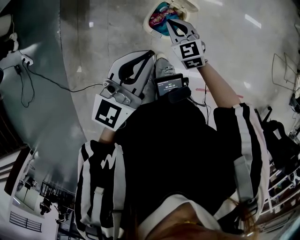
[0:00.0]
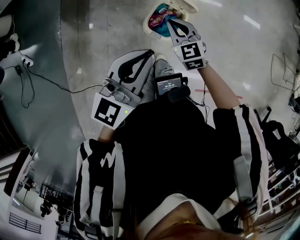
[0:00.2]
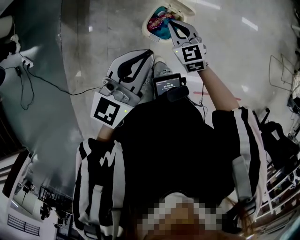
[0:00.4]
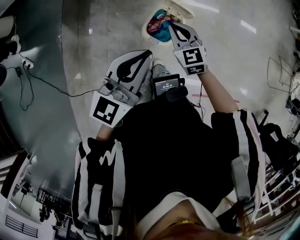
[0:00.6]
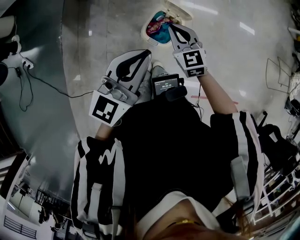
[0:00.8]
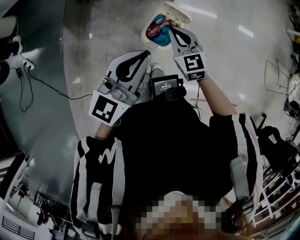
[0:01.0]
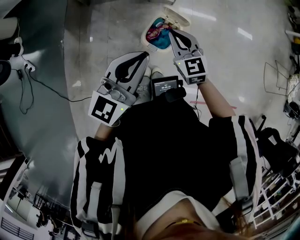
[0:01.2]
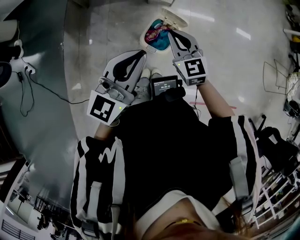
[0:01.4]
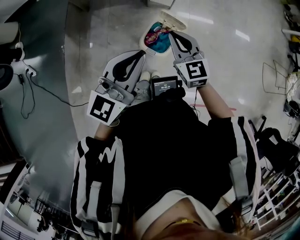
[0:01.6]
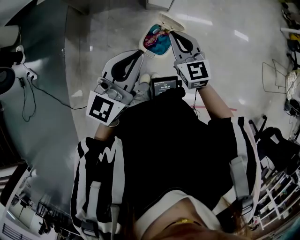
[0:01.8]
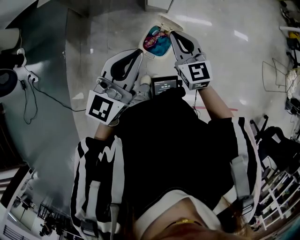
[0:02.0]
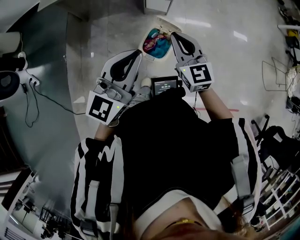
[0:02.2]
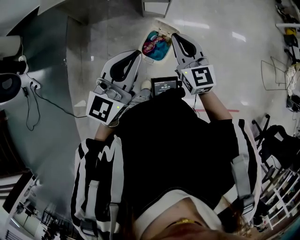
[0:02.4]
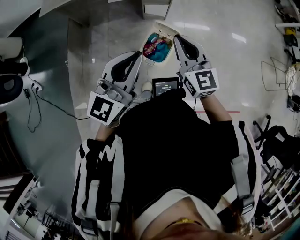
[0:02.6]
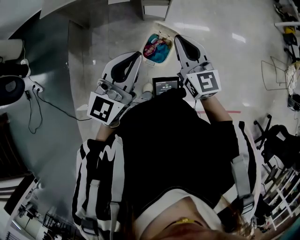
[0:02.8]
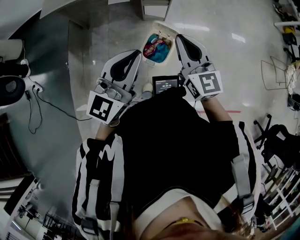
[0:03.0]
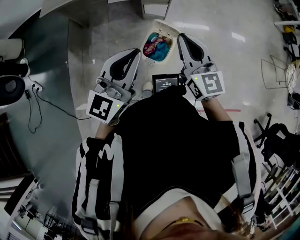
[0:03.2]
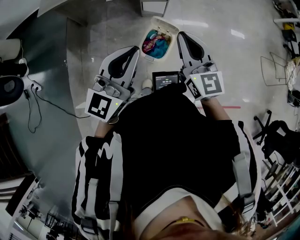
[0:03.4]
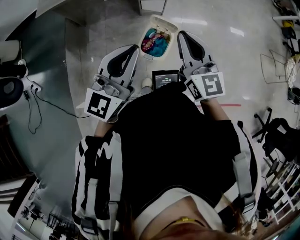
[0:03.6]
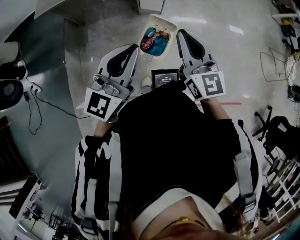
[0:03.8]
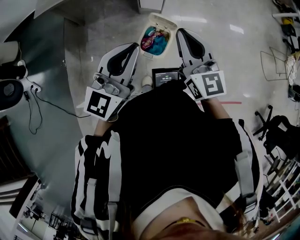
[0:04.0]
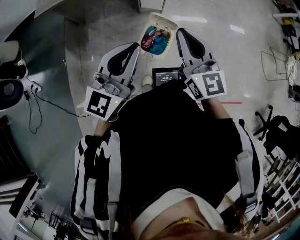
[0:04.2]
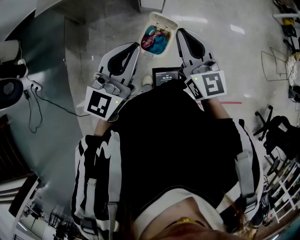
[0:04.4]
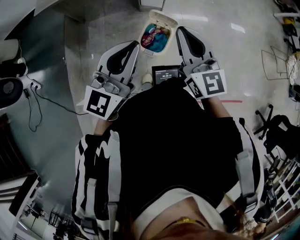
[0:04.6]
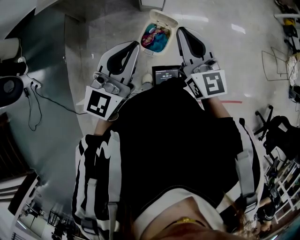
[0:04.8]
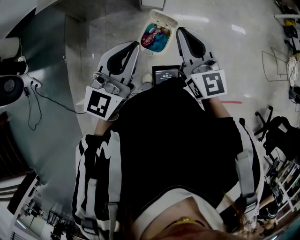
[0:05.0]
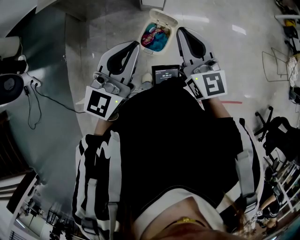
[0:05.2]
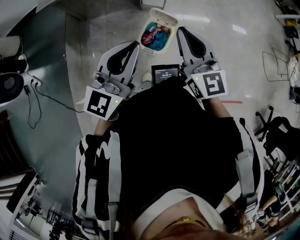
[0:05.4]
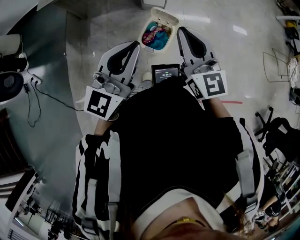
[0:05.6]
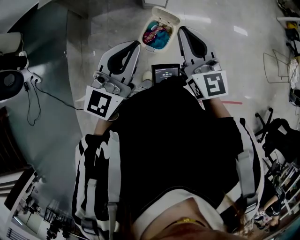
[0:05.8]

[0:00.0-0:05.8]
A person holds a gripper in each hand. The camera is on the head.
0:00.0 to 0:01.4: The right gripper shifts approximately 15 cm upward.
0:01.4 to 0:02.8: The right gripper is displaced upward by about 10 cm.
0:02.8 to 0:04.4: There are only small adjustments of the grippers.
0:04.4 to 0:05.8: The grippers stay close to where they were, moving slightly.

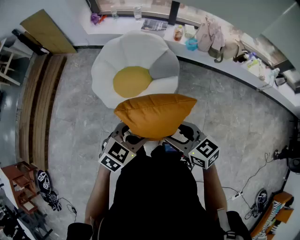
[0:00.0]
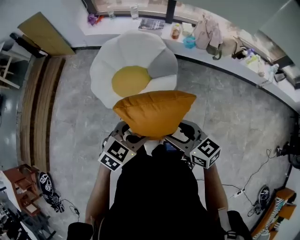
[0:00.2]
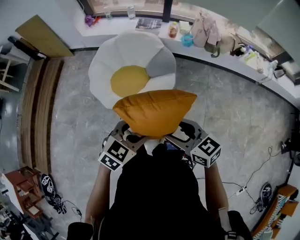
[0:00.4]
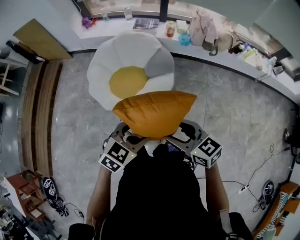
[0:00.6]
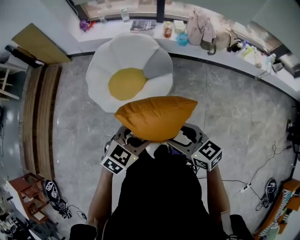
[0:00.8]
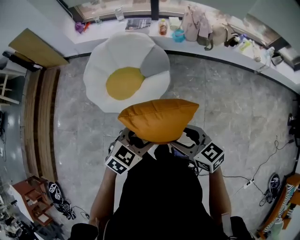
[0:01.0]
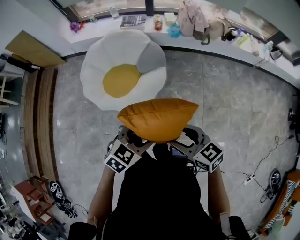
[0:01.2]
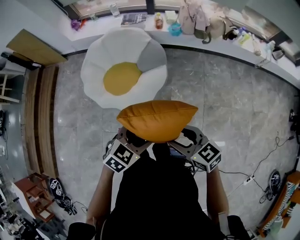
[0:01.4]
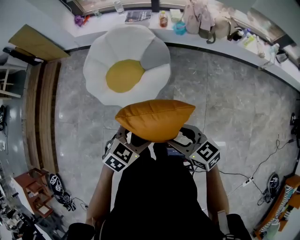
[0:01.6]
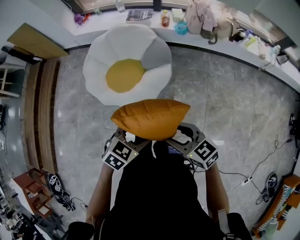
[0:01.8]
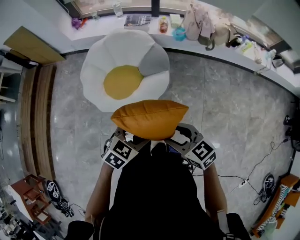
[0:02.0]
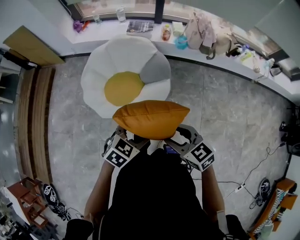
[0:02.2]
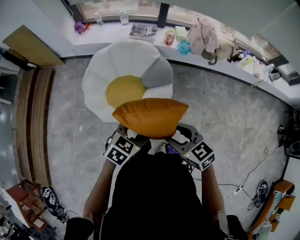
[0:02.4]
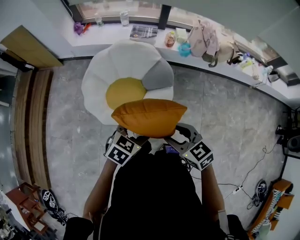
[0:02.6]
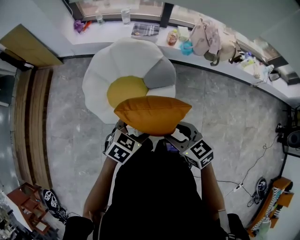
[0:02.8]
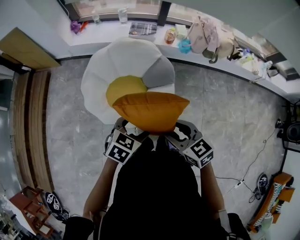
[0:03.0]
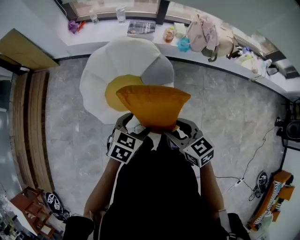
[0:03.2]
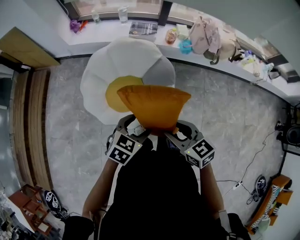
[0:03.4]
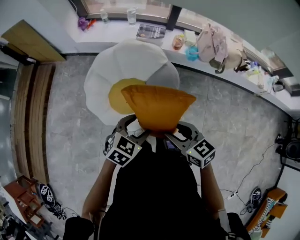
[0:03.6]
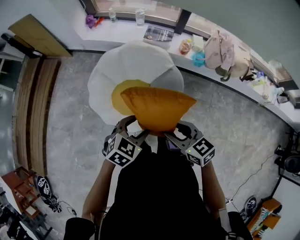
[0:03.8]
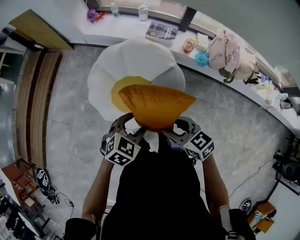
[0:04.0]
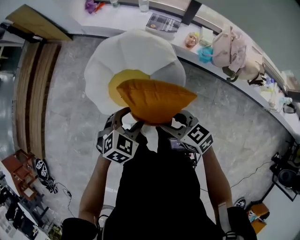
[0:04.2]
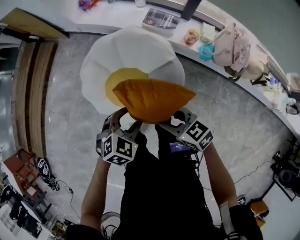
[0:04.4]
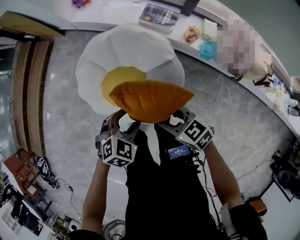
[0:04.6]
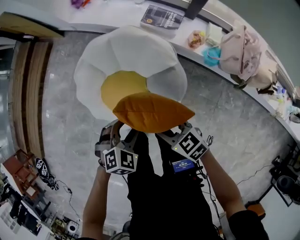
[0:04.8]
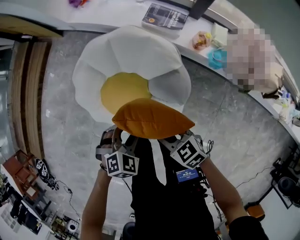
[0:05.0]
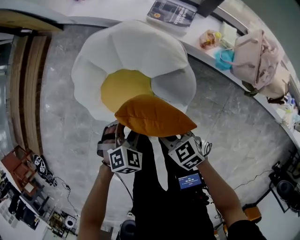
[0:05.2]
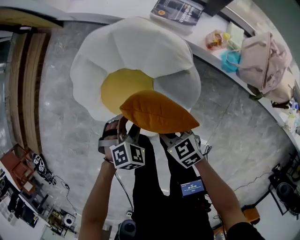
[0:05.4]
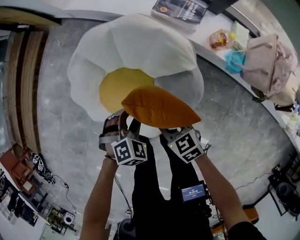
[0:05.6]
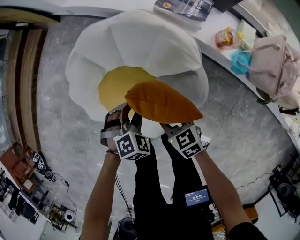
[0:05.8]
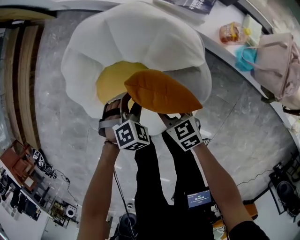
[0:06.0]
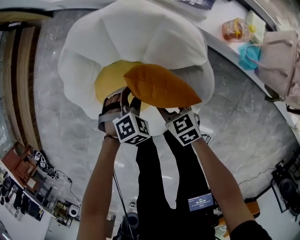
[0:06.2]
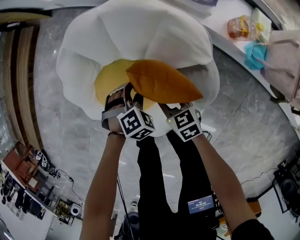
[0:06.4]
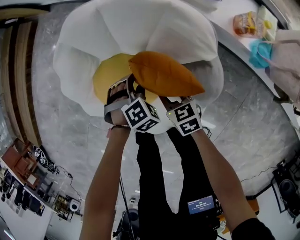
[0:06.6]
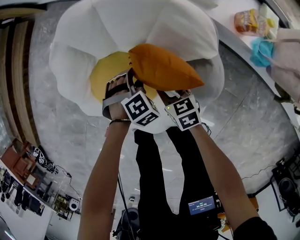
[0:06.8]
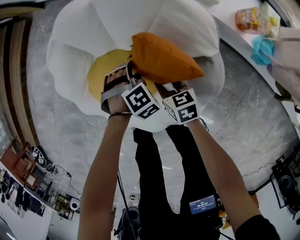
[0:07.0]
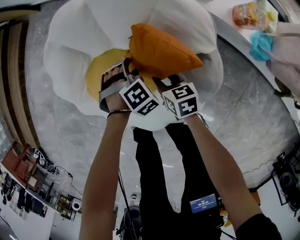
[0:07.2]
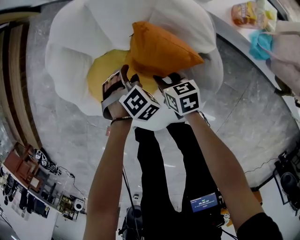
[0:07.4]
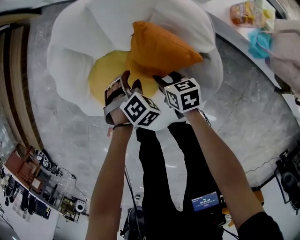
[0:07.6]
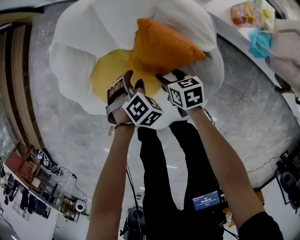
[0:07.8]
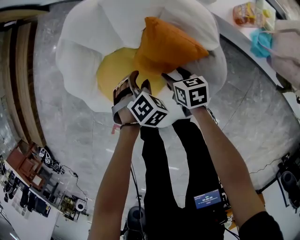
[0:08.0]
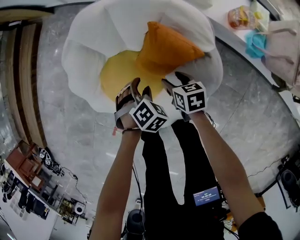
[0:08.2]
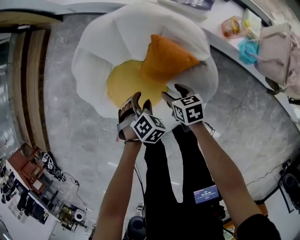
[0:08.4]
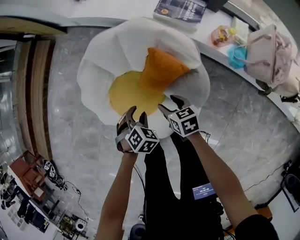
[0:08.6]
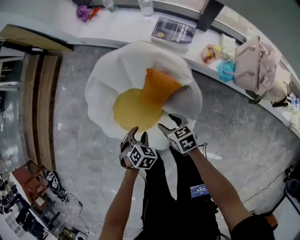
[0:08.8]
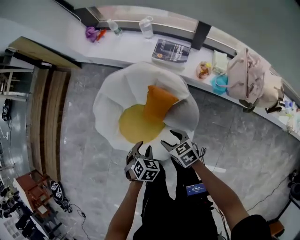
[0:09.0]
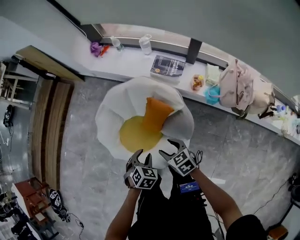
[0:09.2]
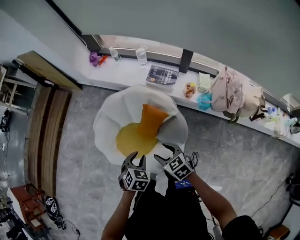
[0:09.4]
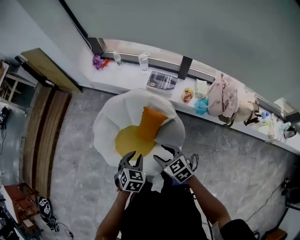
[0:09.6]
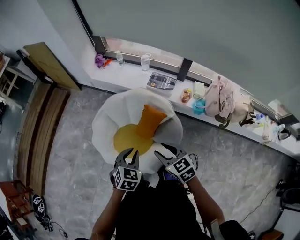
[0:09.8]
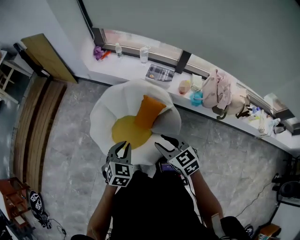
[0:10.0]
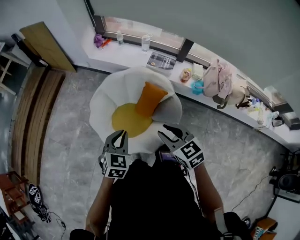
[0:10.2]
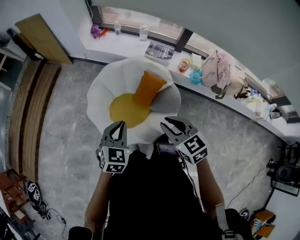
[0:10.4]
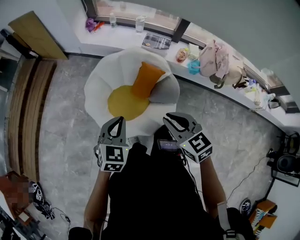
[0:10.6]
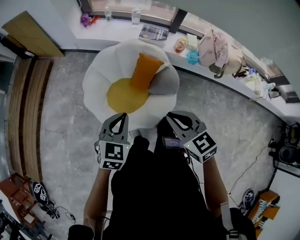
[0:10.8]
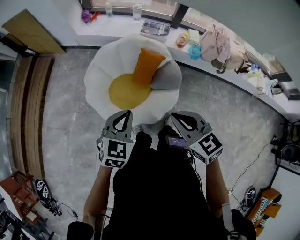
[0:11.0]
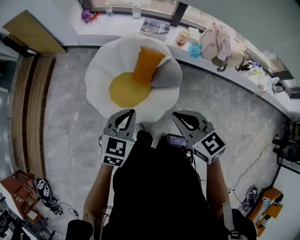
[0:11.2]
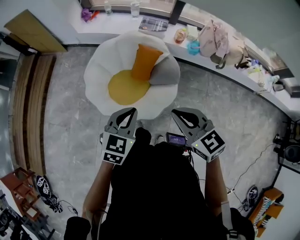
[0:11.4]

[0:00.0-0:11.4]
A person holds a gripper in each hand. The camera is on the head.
0:00.0 to 0:01.4: The two grippers go about 10 cm to the right.
0:01.4 to 0:02.8: Both grippers travel together forward and to the left, approximately 25 cm.
0:02.8 to 0:04.2: The right gripper changes place by about 20 cm, and swivels some 20 degrees. Meanwhile the left gripper shifts by roughly 20 cm.
0:04.2 to 0:05.6: Both grippers move downward and forward, roughly 30 cm. The left gripper turns by approximately 20 degrees.
0:05.6 to 0:07.2: The two grippers go approximately 25 cm downward and forward. The right gripper changes its angle by roughly 20 degrees.
0:07.2 to 0:08.6: The left gripper shifts about 20 cm upward, to the left and backward, and swivels roughly 20 degrees, while the right gripper travels upward by some 20 cm, and opens.
0:08.6 to 0:10.0: The two grippers go about 40 cm upward. The right gripper swivels some 30 degrees, and closes its fingers. Meanwhile the left gripper rotates approximately 30 degrees, and closes its fingers.
0:10.0 to 0:11.4: The left gripper is displaced backward by some 10 cm, and swivels some 20 degrees; the right gripper moves backward and upward, approximately 15 cm, and closes up.

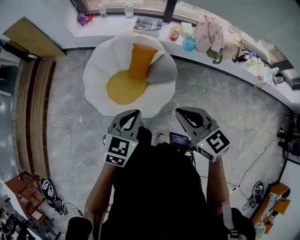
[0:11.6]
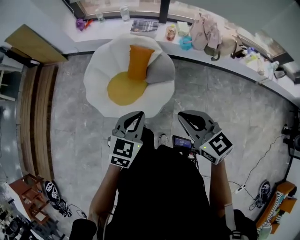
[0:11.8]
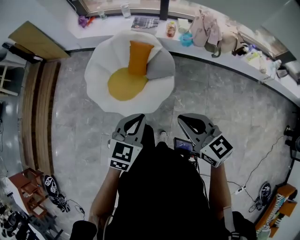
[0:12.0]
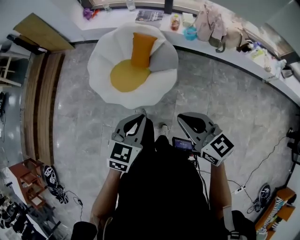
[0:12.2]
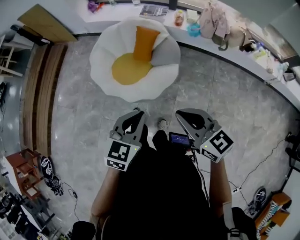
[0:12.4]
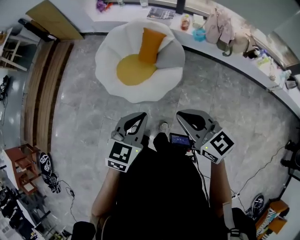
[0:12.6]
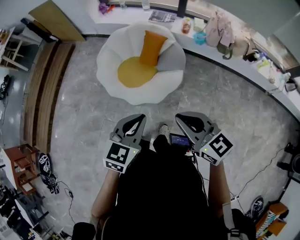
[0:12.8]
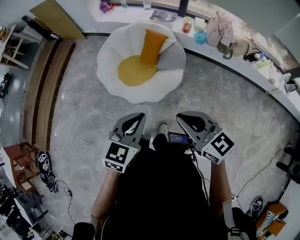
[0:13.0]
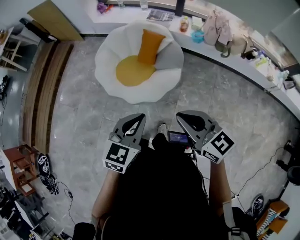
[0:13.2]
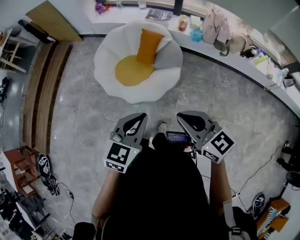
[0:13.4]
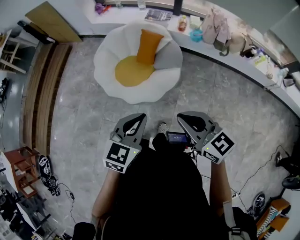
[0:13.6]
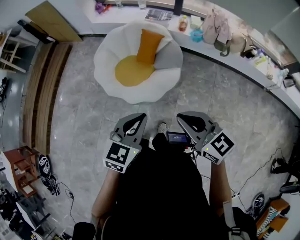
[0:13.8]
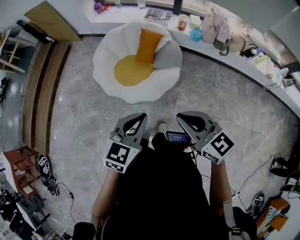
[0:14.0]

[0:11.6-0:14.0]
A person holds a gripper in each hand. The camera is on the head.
0:11.6 to 0:12.8: The grippers both shift backward by roughly 20 cm.
0:12.8 to 0:14.0: There are only small adjustments of the grippers.

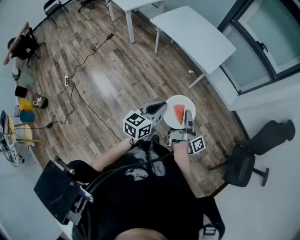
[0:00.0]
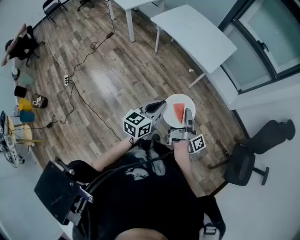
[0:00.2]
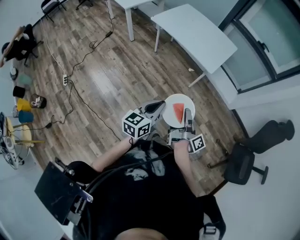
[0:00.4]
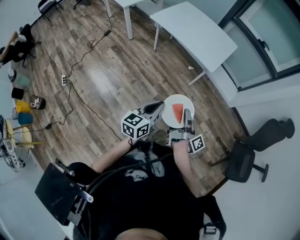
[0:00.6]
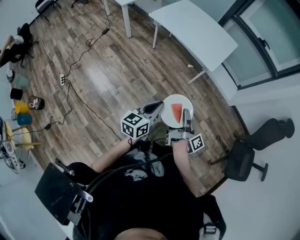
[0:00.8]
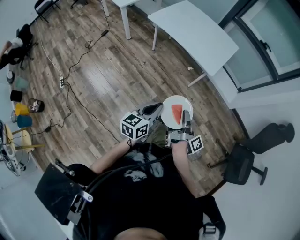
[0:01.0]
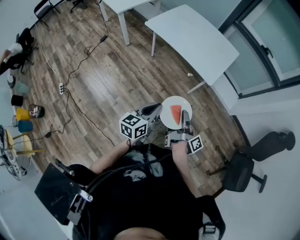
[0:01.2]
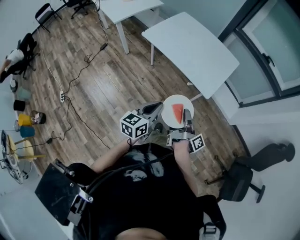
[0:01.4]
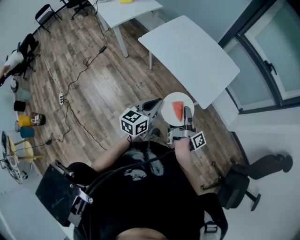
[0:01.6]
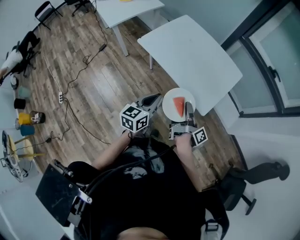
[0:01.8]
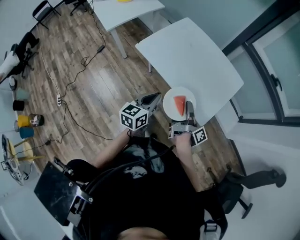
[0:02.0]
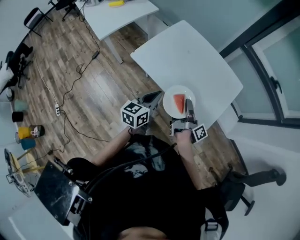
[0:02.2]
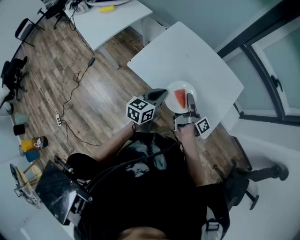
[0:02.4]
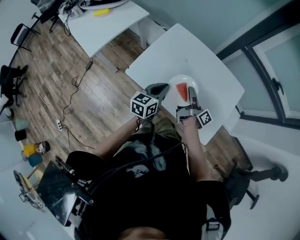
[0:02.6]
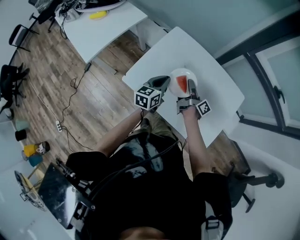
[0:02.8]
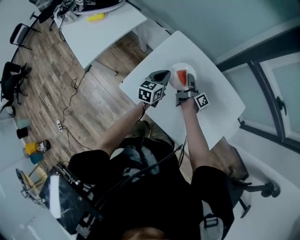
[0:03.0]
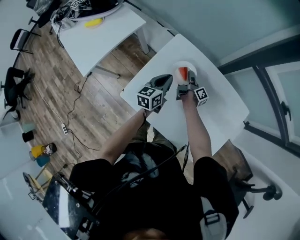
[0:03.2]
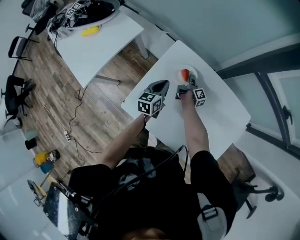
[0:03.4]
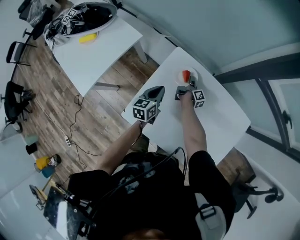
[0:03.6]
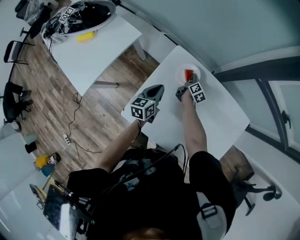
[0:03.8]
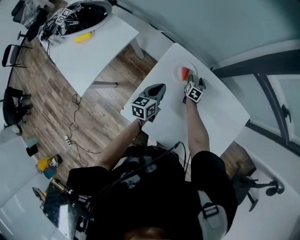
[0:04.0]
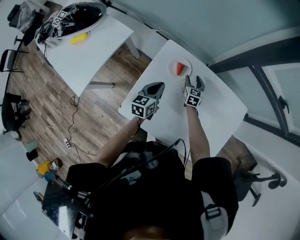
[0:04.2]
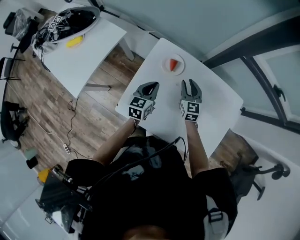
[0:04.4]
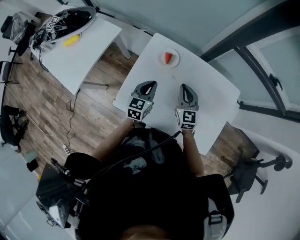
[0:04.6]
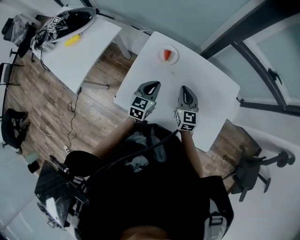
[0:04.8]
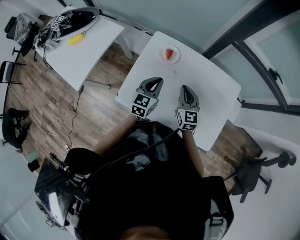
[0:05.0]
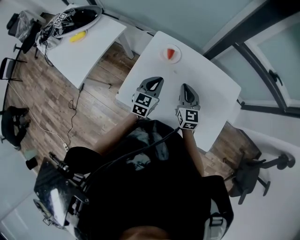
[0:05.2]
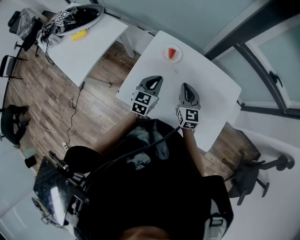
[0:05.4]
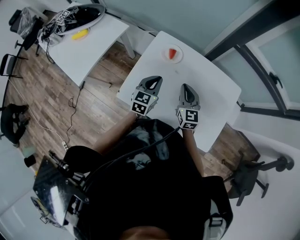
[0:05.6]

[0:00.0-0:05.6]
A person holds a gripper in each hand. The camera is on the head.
0:00.0 to 0:01.4: The left gripper ends up roughly 30 cm from where it was.
0:01.4 to 0:02.8: The left gripper ends up roughly 60 cm from where it was.
0:02.8 to 0:04.2: The left gripper changes place by approximately 20 cm.
0:04.2 to 0:05.6: The left gripper ends up about 15 cm from where it was, and swivels roughly 20 degrees.
